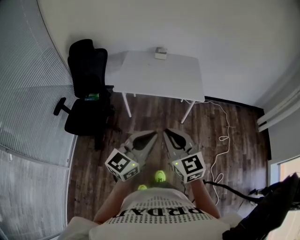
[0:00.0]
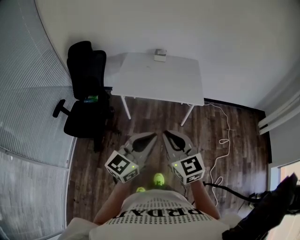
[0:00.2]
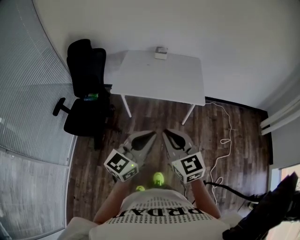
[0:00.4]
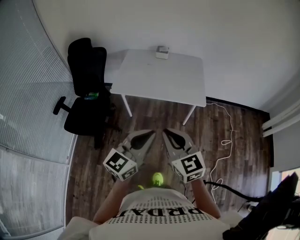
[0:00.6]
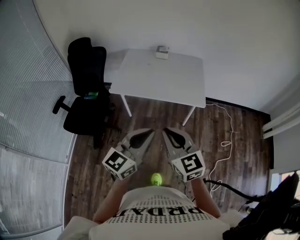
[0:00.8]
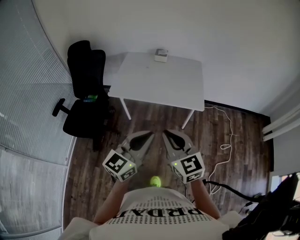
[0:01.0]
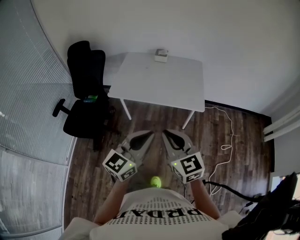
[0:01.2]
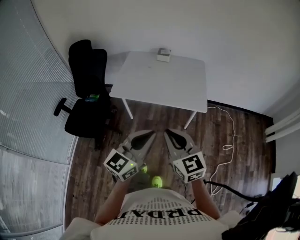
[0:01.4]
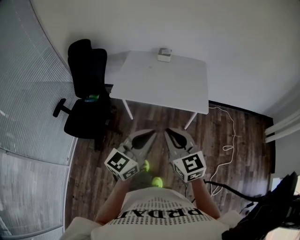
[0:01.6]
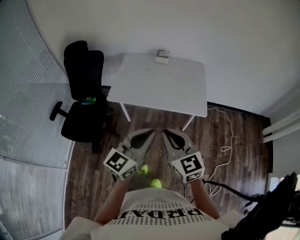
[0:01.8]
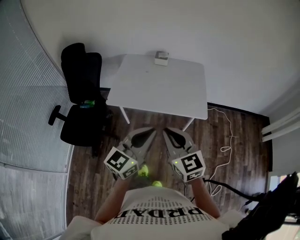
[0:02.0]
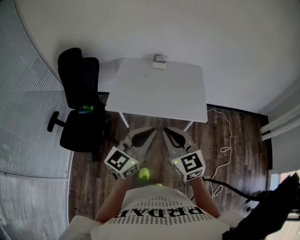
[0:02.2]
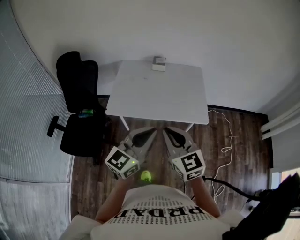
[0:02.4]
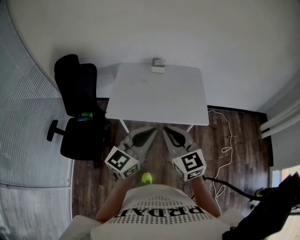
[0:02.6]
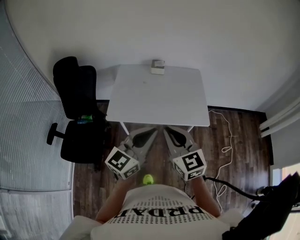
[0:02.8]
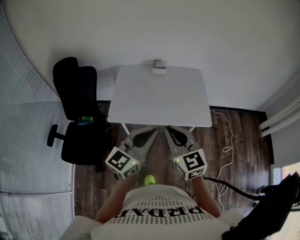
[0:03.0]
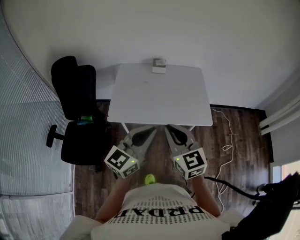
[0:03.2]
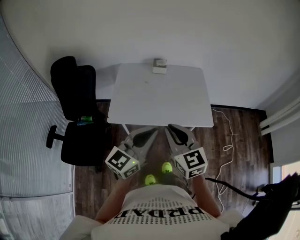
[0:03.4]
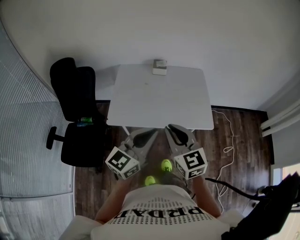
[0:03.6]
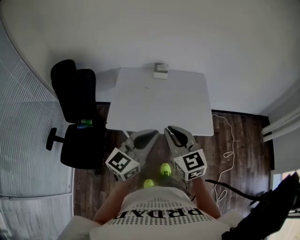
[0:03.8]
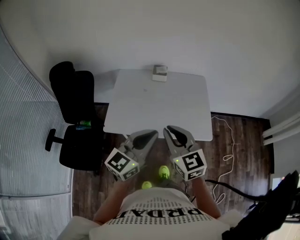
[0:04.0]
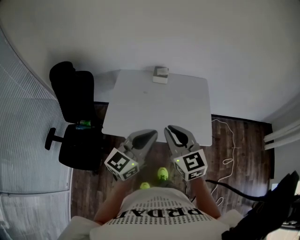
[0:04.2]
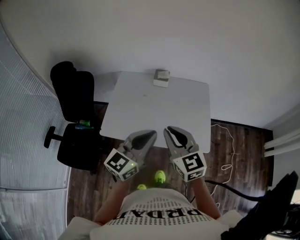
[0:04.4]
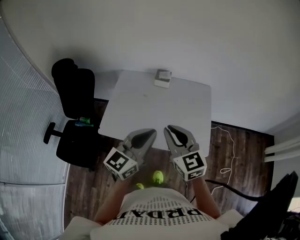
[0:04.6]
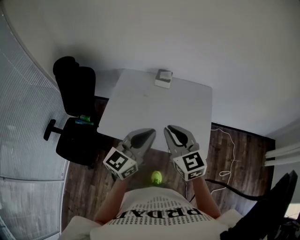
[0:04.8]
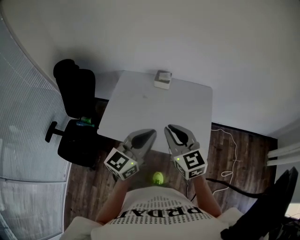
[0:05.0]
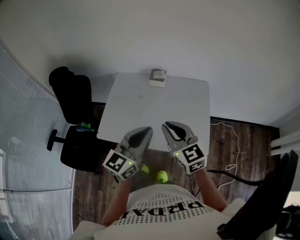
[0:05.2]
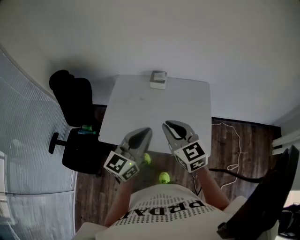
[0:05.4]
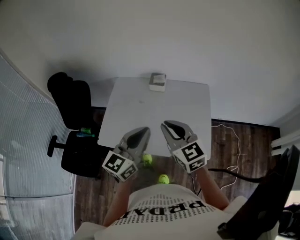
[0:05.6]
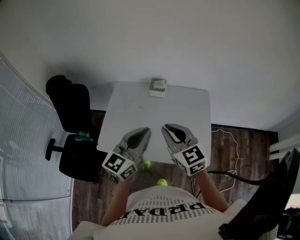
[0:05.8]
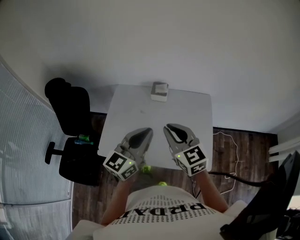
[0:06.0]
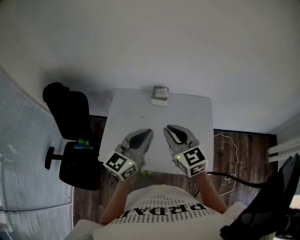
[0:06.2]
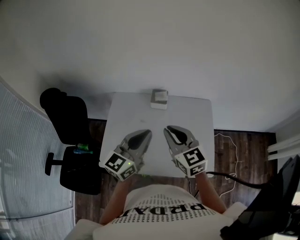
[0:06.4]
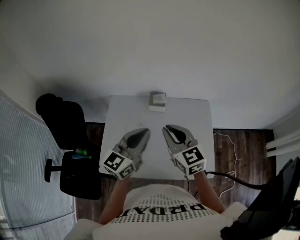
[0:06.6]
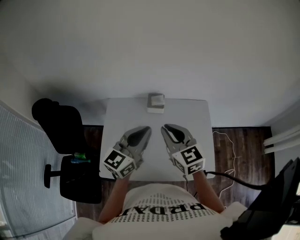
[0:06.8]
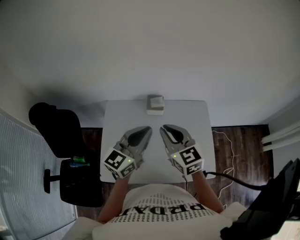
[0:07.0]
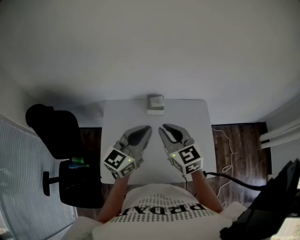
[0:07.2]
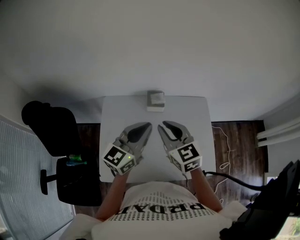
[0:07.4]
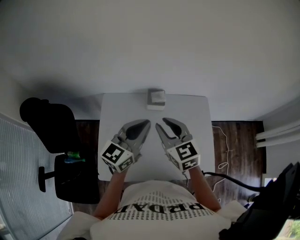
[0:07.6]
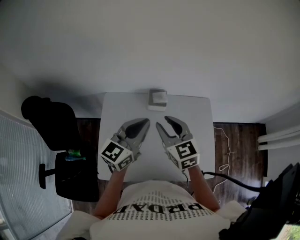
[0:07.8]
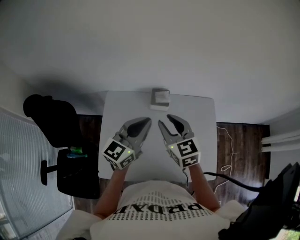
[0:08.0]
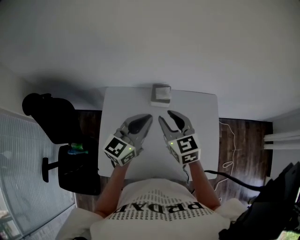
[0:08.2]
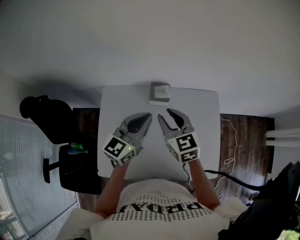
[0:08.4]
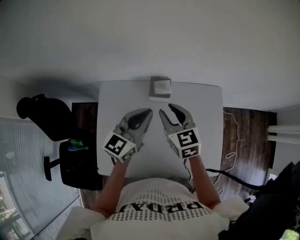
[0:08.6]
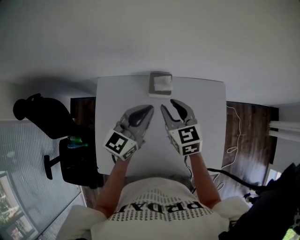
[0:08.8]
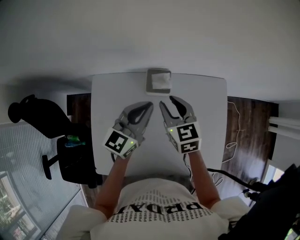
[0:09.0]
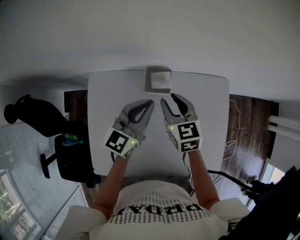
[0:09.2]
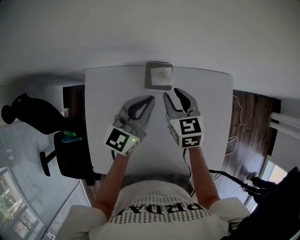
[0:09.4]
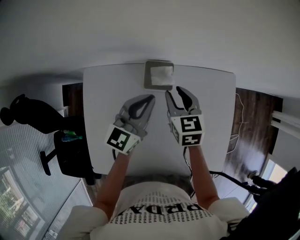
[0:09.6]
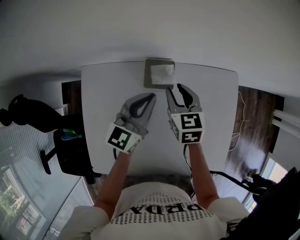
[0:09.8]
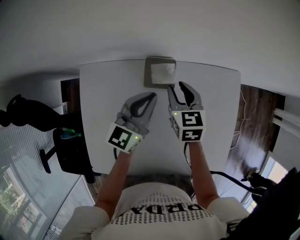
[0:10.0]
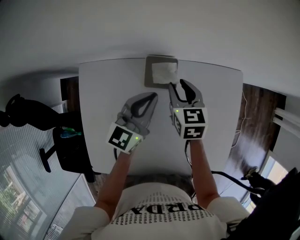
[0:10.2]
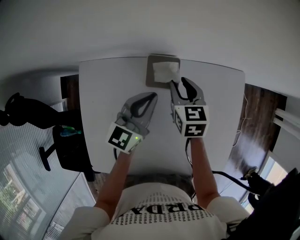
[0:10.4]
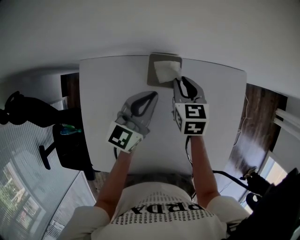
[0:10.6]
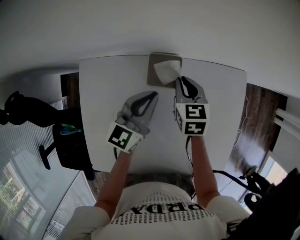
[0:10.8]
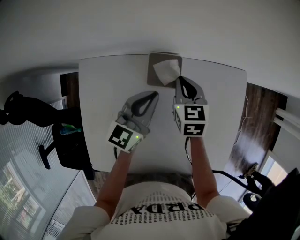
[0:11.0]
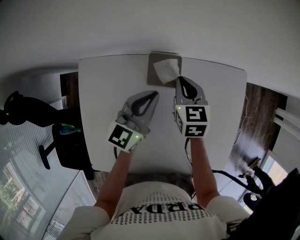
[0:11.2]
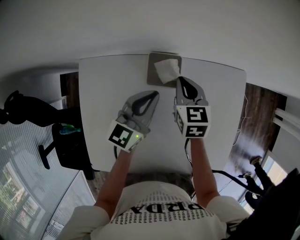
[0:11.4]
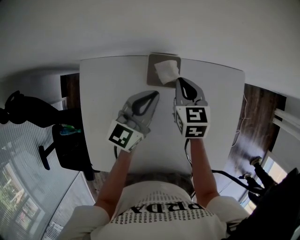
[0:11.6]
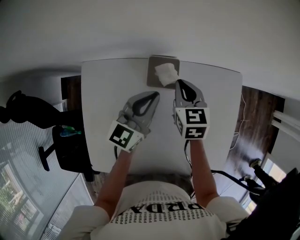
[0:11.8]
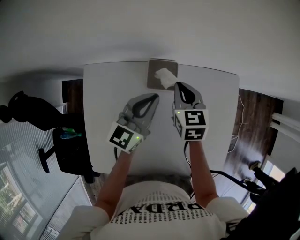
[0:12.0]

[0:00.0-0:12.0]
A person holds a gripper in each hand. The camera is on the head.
0:00.0 to 0:01.6: Both grippers move forward, some 15 cm.
0:01.6 to 0:03.0: Both grippers move forward and to the left, about 15 cm.
0:03.0 to 0:04.4: The two grippers go some 20 cm forward.
0:04.4 to 0:06.0: Both grippers travel together forward, approximately 15 cm.
0:06.0 to 0:07.6: Both grippers move forward and to the left, roughly 20 cm.
0:07.6 to 0:09.0: The grippers both shift forward and downward by approximately 20 cm.
0:09.0 to 0:10.4: The right gripper moves downward and forward, approximately 15 cm. Meanwhile the left gripper moves downward, about 10 cm.
0:10.4 to 0:12.0: The right gripper closes up.

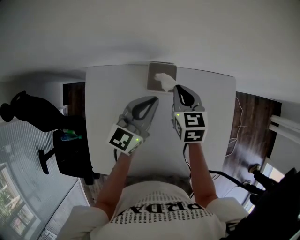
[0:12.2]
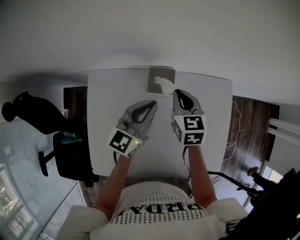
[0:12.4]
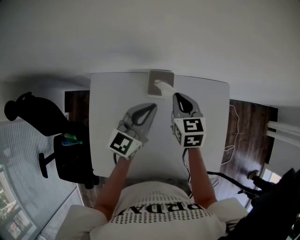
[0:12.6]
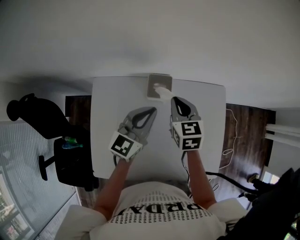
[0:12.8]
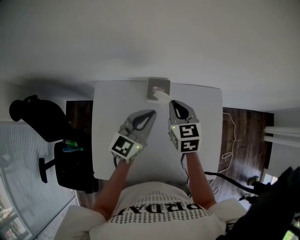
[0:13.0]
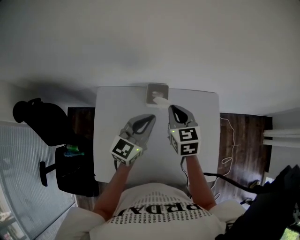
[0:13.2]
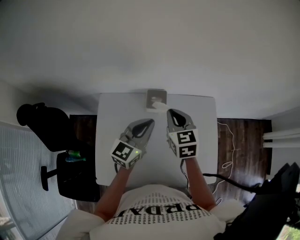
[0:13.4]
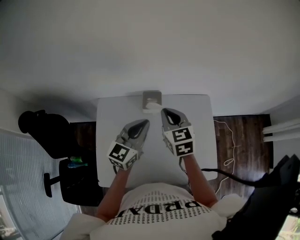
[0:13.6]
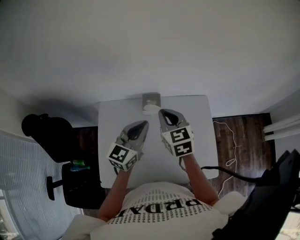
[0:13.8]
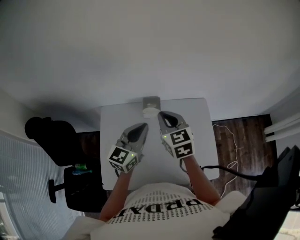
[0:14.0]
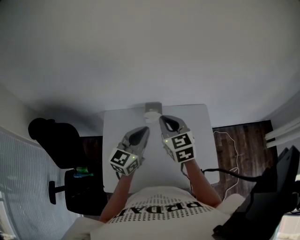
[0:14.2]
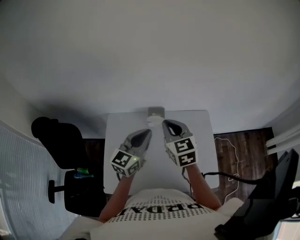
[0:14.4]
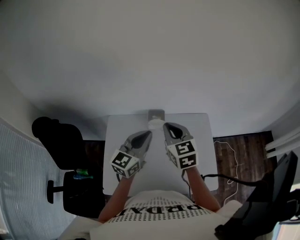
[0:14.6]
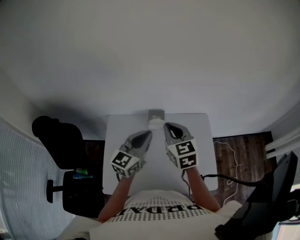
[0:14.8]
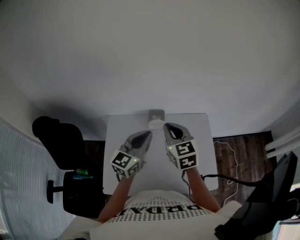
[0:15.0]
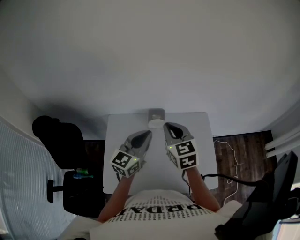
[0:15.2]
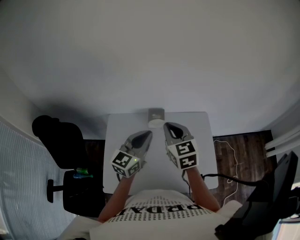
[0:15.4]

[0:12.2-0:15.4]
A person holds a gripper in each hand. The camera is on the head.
0:12.2 to 0:13.8: The two grippers go some 20 cm upward and backward.
0:13.8 to 0:15.4: The left gripper shifts by roughly 5 cm; the right gripper travels upward and backward by approximately 10 cm.

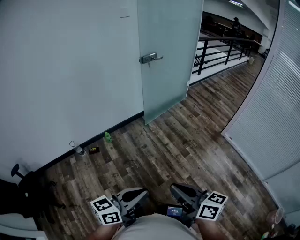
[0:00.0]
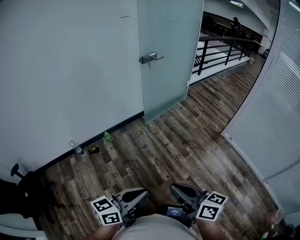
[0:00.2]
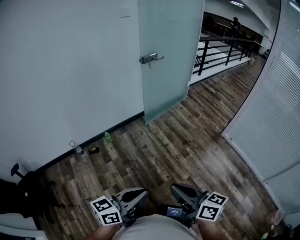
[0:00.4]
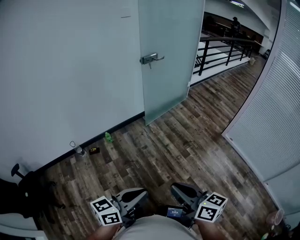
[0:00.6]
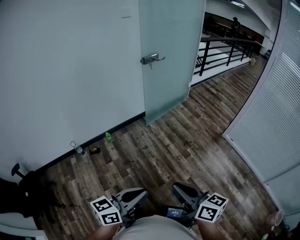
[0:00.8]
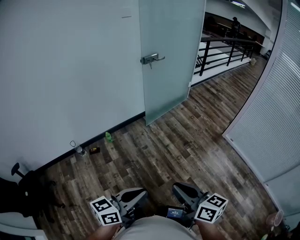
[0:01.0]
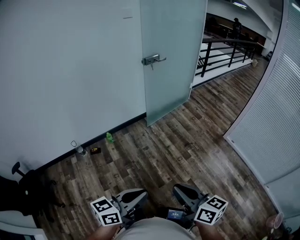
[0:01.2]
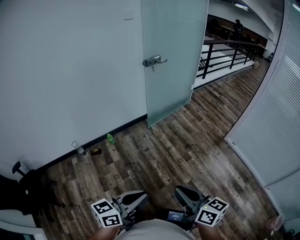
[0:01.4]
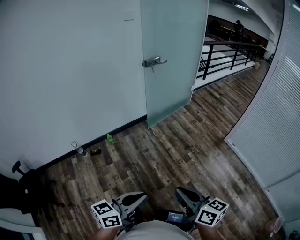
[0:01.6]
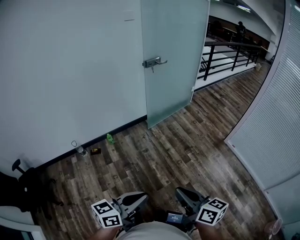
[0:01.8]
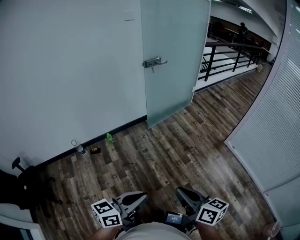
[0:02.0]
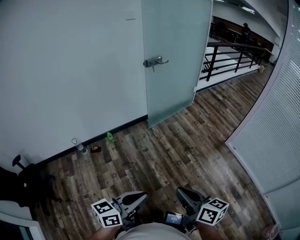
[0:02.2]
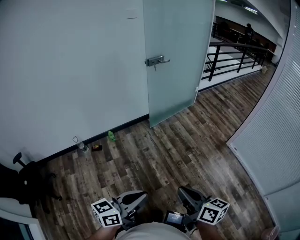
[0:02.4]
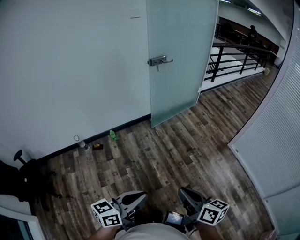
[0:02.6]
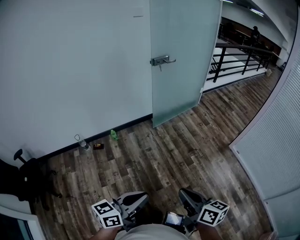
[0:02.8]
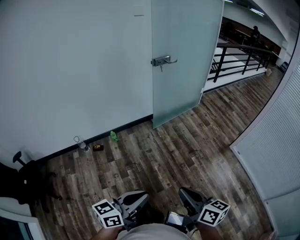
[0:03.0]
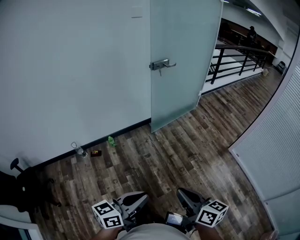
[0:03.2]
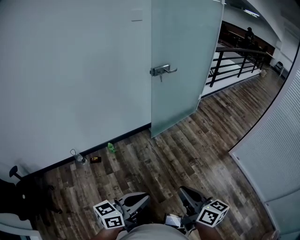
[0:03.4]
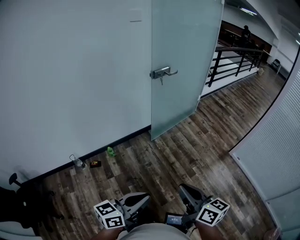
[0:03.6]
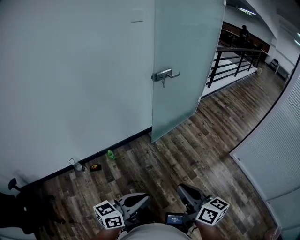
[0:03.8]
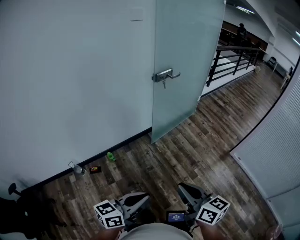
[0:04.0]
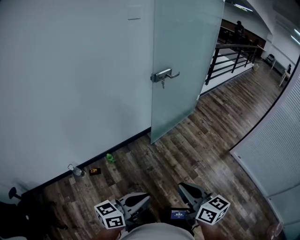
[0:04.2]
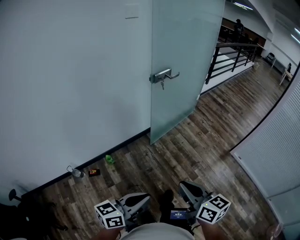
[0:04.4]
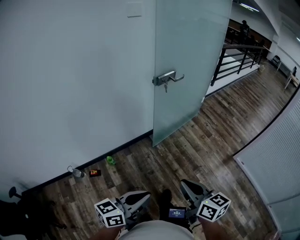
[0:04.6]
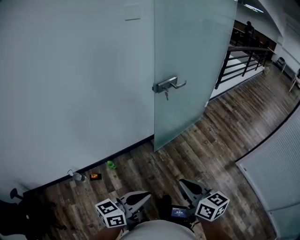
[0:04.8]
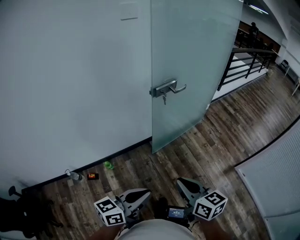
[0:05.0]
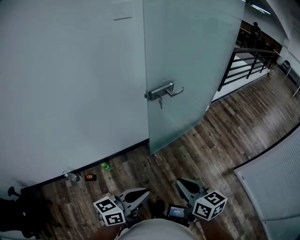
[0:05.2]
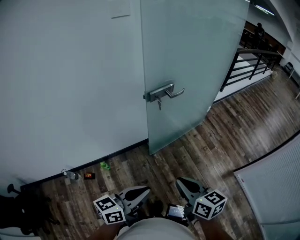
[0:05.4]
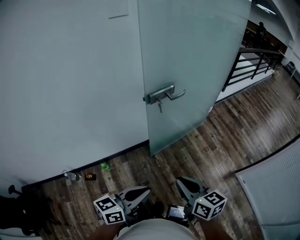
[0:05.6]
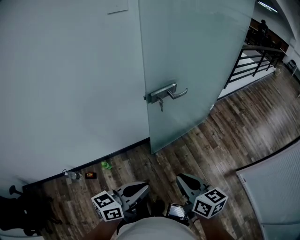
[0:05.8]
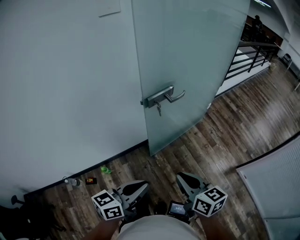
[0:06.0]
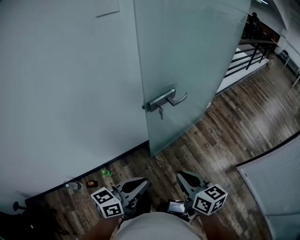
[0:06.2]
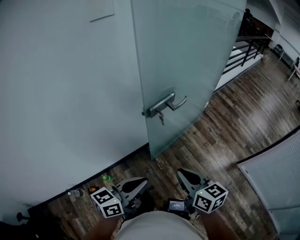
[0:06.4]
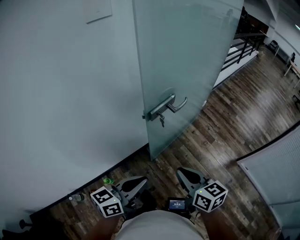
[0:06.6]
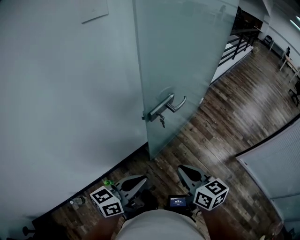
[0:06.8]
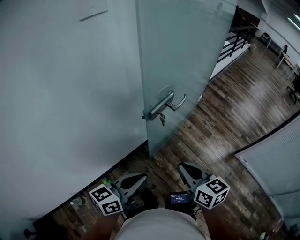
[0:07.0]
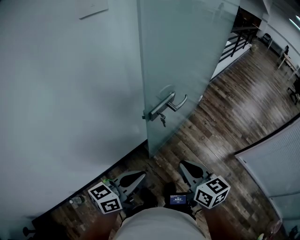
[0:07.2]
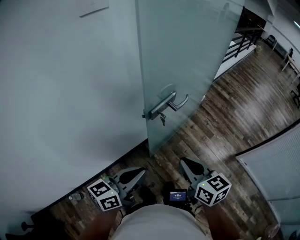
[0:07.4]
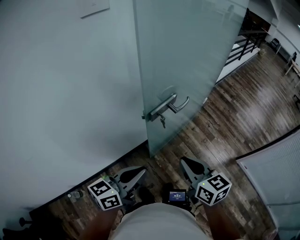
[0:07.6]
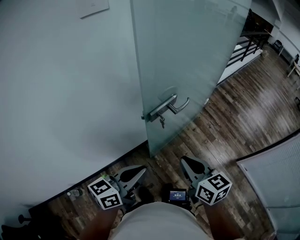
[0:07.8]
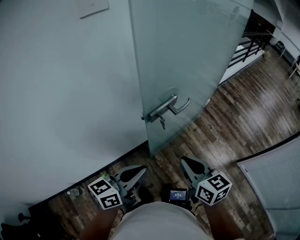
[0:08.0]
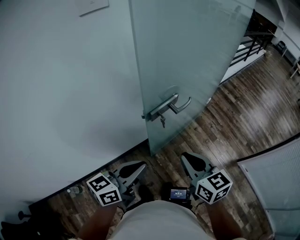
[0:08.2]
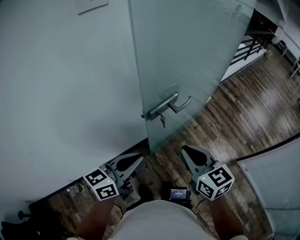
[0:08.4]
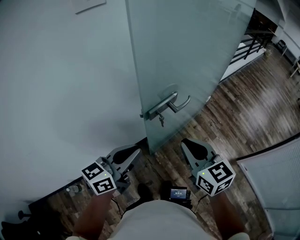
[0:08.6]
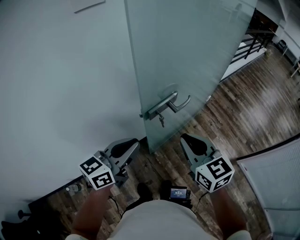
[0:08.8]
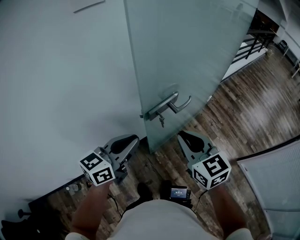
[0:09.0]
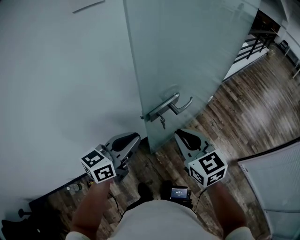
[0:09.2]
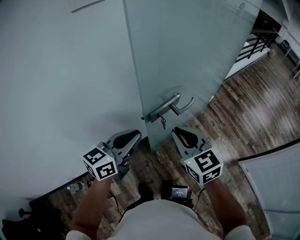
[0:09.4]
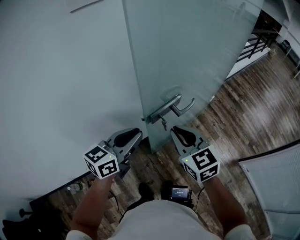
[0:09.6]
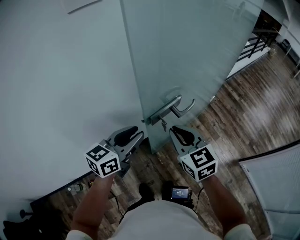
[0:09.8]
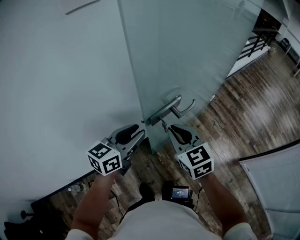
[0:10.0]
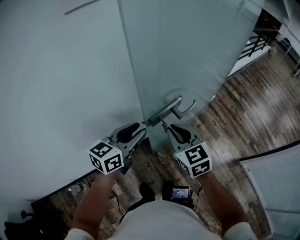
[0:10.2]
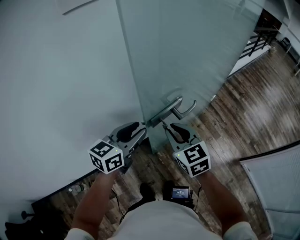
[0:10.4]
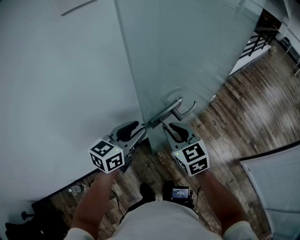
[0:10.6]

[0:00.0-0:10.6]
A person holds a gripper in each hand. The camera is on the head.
0:00.0 to 0:01.6: The right gripper shifts by roughly 5 cm.
0:01.6 to 0:03.0: The left gripper moves some 5 cm. The right gripper moves forward, roughly 5 cm.
0:03.0 to 0:04.6: Both grippers travel together forward and to the left, some 30 cm.
0:04.6 to 0:06.0: Both grippers travel together forward, roughly 25 cm.
0:06.0 to 0:07.6: The two grippers go some 15 cm forward and to the left.
0:07.6 to 0:09.0: The grippers both shift forward by approximately 10 cm. The right gripper changes its angle by roughly 20 degrees.
0:09.0 to 0:10.6: The right gripper shifts about 10 cm forward, downward and to the left. Meanwhile the left gripper shifts about 10 cm forward, and opens.
